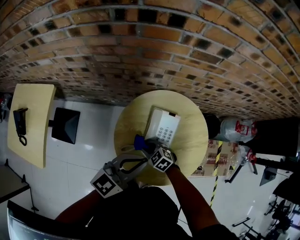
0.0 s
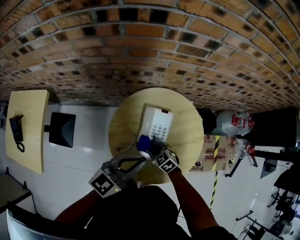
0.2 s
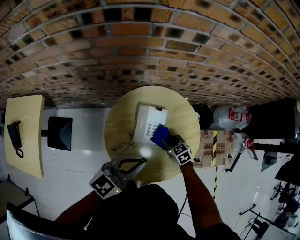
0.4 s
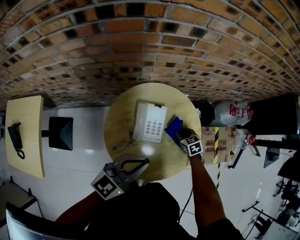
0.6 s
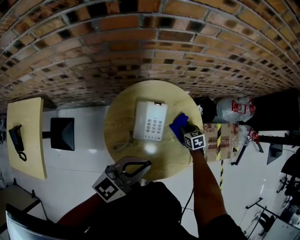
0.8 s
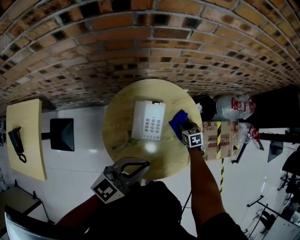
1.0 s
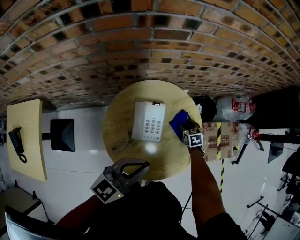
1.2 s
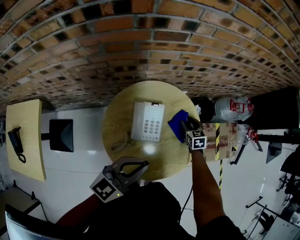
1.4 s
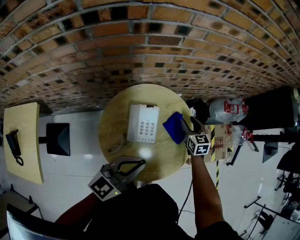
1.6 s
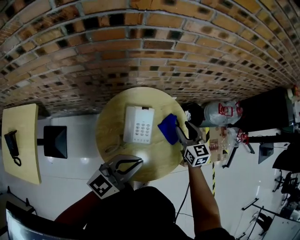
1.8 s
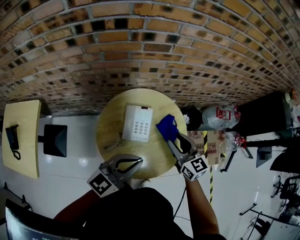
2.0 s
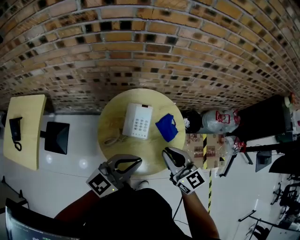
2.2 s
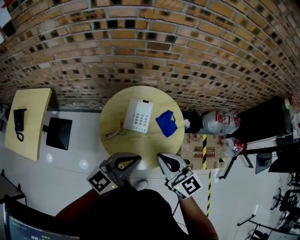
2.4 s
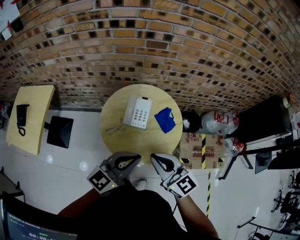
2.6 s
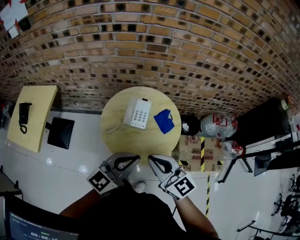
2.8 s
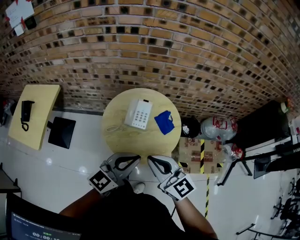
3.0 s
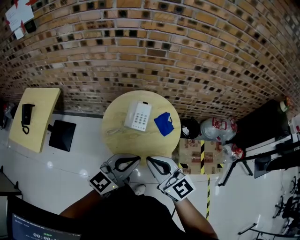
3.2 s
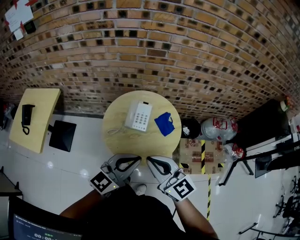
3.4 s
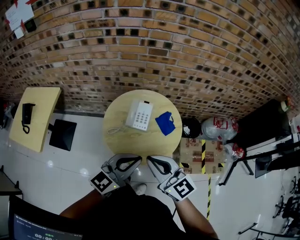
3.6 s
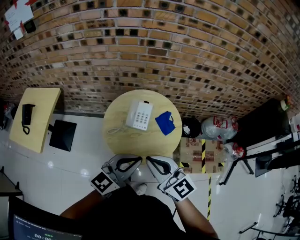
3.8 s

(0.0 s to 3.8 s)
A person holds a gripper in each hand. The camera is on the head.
0.0 s - 1.2 s: The right gripper shifts by some 35 cm, and changes its angle by approximately 50 degrees. The left gripper ends up roughly 10 cm from where it was.
1.2 s - 2.6 s: The right gripper shifts about 50 cm upward and backward, tilts its fingers some 50 degrees upward, and closes, while the left gripper goes about 20 cm backward, upward and to the right.
2.6 s - 3.8 s: The right gripper ends up about 5 cm from where it was.

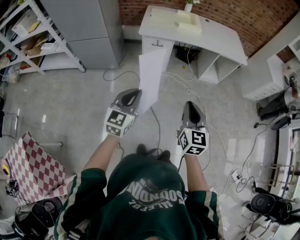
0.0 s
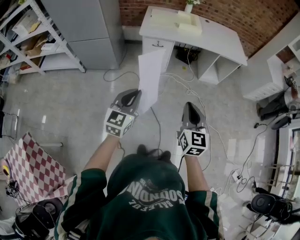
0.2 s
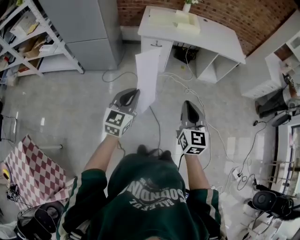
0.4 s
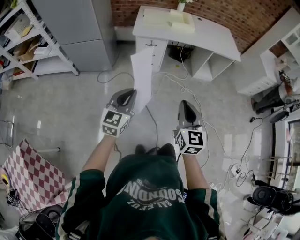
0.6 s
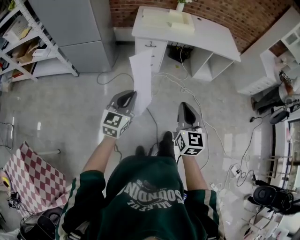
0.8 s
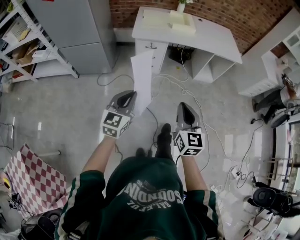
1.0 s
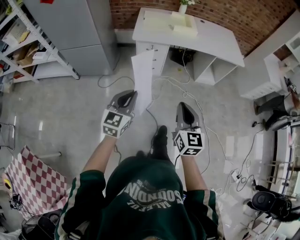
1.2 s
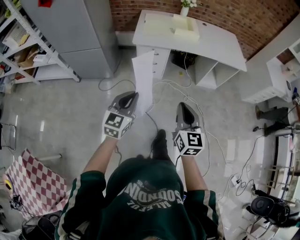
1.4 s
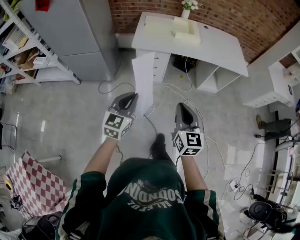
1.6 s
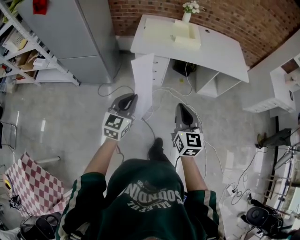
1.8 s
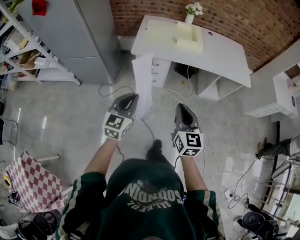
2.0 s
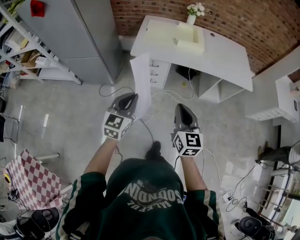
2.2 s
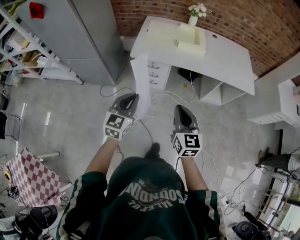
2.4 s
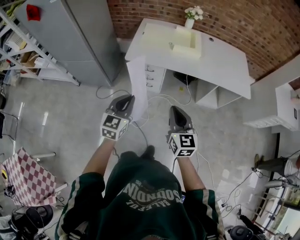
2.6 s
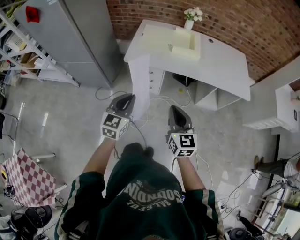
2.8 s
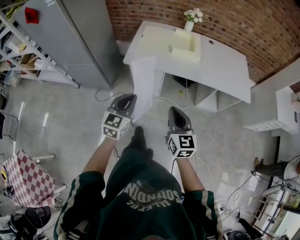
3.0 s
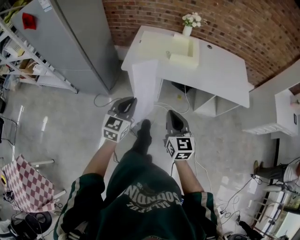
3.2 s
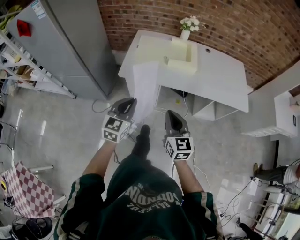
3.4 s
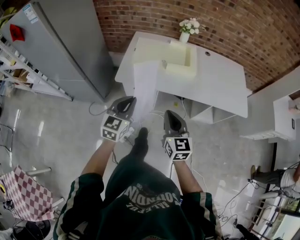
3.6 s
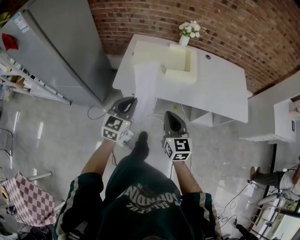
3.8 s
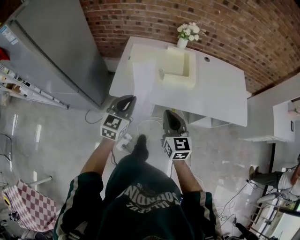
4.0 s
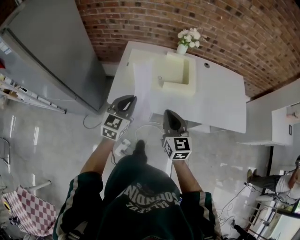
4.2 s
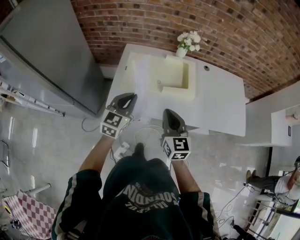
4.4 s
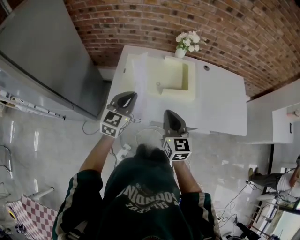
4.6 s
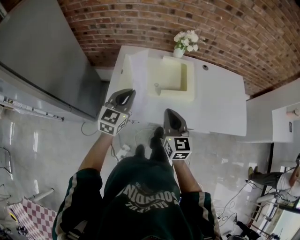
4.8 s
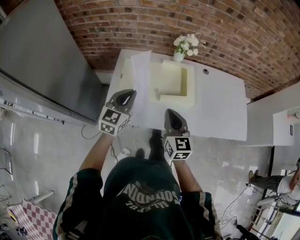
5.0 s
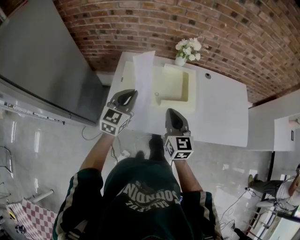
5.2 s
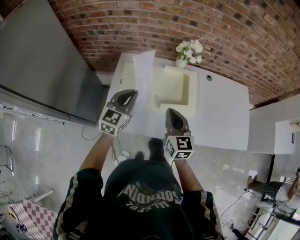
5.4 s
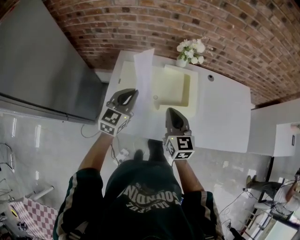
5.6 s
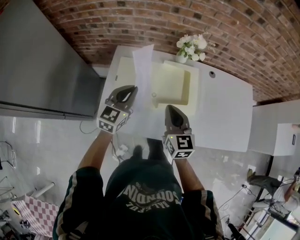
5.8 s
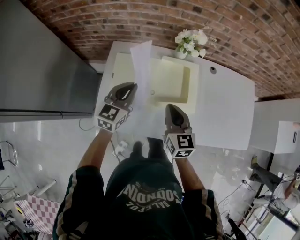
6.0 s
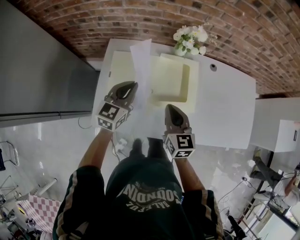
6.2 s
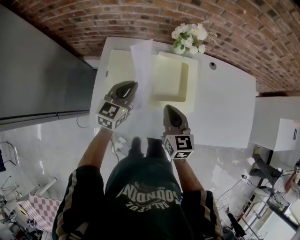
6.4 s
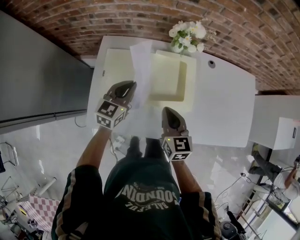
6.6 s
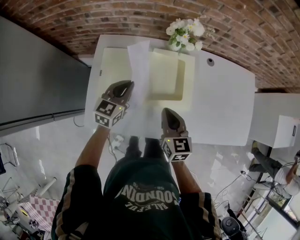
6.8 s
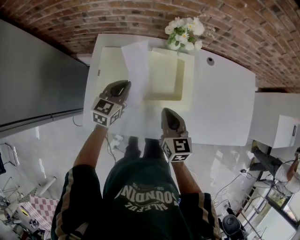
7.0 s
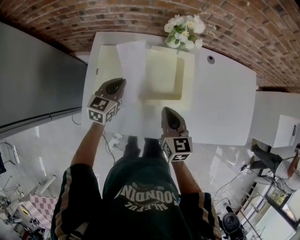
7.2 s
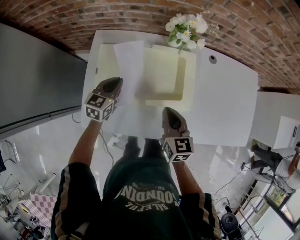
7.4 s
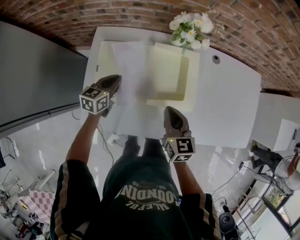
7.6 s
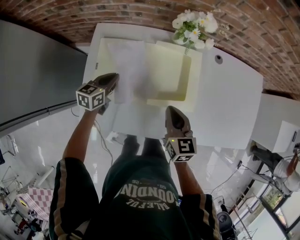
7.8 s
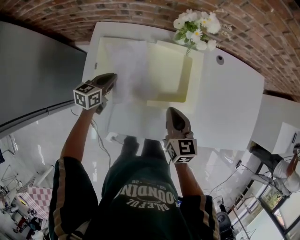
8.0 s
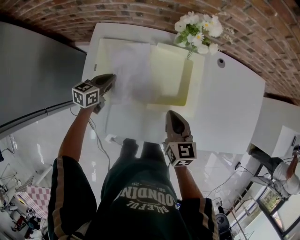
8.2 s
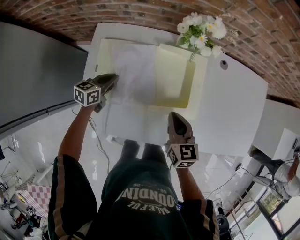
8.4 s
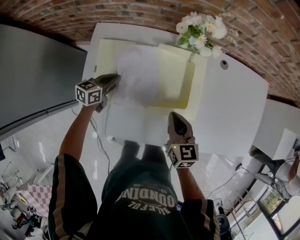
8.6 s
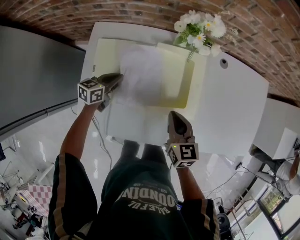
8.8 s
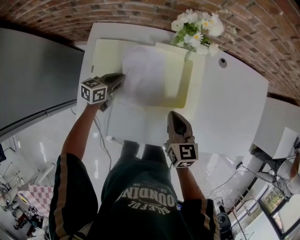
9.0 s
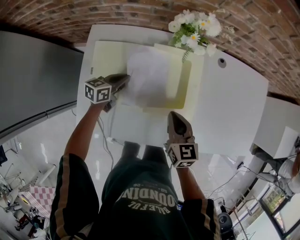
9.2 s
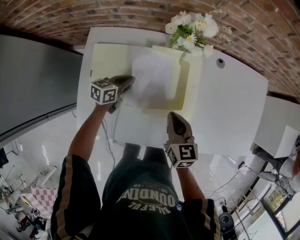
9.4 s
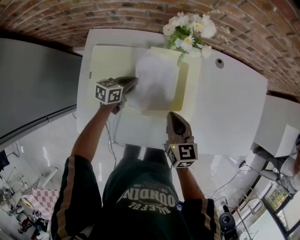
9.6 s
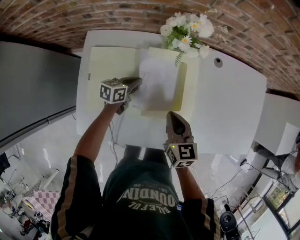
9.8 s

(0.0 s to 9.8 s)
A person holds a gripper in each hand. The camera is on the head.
0.0 s - 1.4 s: The two grippers go about 10 cm forward.
1.4 s - 2.8 s: The left gripper goes about 25 cm forward and to the right. Meanwhile the right gripper travels forward by approximately 20 cm.
2.8 s - 4.2 s: Both grippers move forward, about 35 cm.
4.2 s - 5.6 s: The grippers both shift forward by some 20 cm.
5.6 s - 7.0 s: The left gripper is displaced downward and forward by approximately 15 cm. Meanwhile the right gripper is displaced downward by approximately 10 cm.
7.0 s - 8.4 s: The left gripper goes roughly 15 cm downward and to the left, and turns by approximately 20 degrees, while the right gripper shifts some 5 cm downward.
8.4 s - 9.8 s: The left gripper moves to the right and forward, approximately 15 cm.

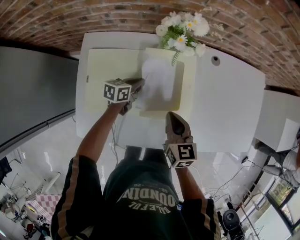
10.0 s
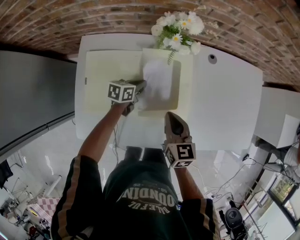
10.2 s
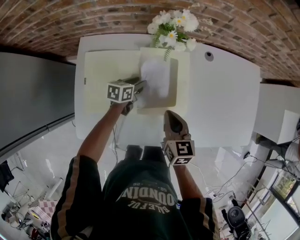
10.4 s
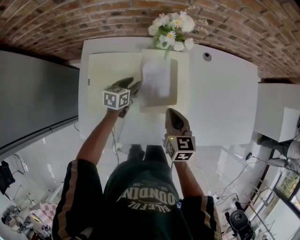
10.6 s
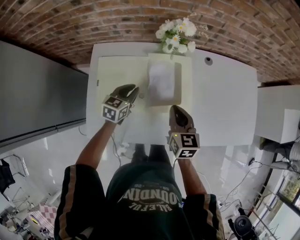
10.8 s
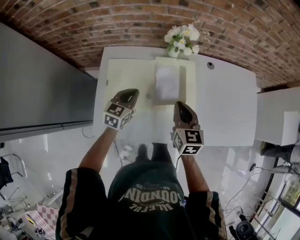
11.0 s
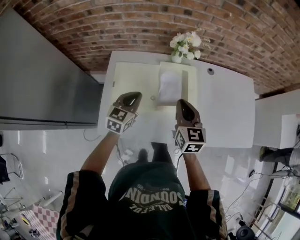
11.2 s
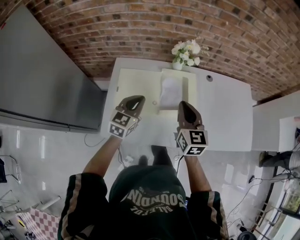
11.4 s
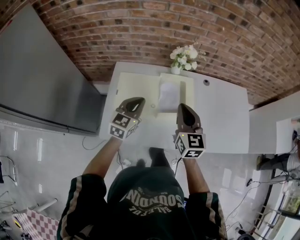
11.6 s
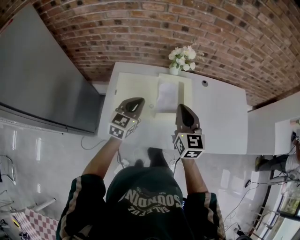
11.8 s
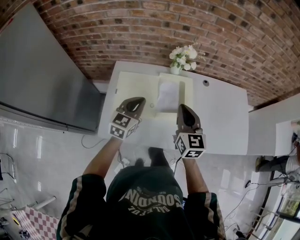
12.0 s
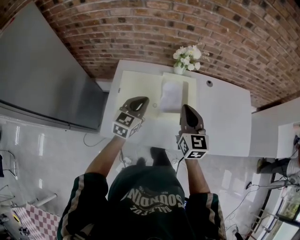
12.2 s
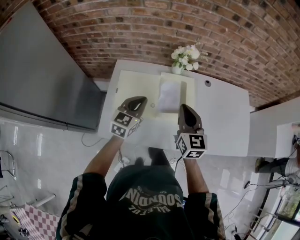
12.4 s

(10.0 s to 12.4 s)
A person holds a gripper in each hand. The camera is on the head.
10.0 s - 11.2 s: The right gripper heads upward, covering approximately 15 cm, while the left gripper goes approximately 25 cm upward and backward, turns by roughly 40 degrees, and opens and closes again.
11.2 s - 12.4 s: Both grippers move upward, roughly 5 cm.

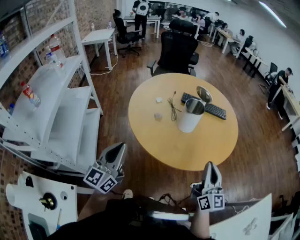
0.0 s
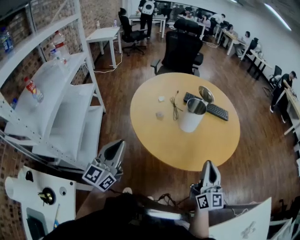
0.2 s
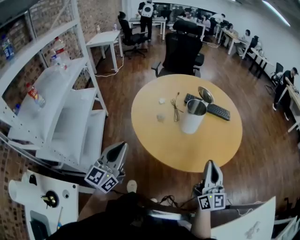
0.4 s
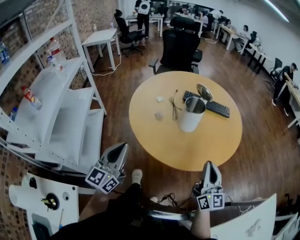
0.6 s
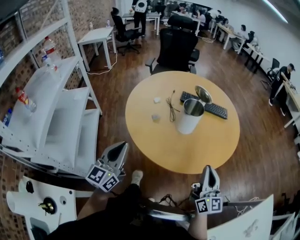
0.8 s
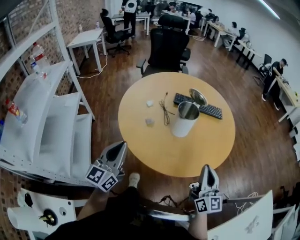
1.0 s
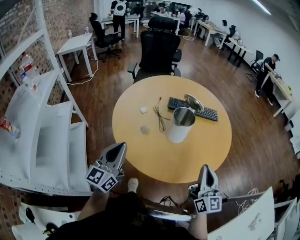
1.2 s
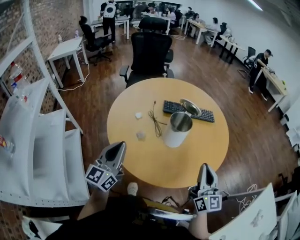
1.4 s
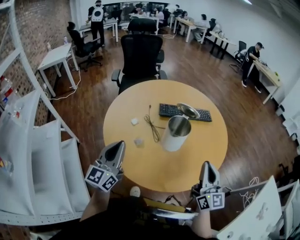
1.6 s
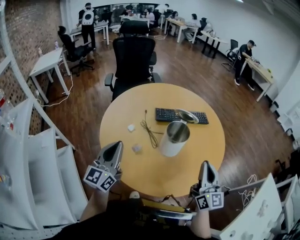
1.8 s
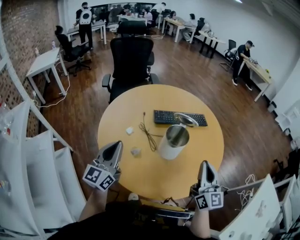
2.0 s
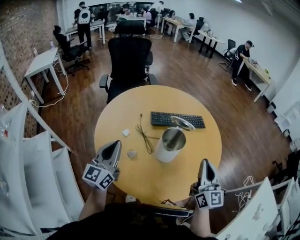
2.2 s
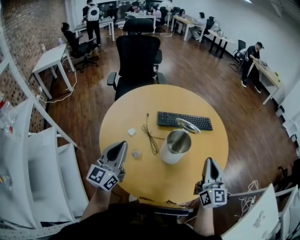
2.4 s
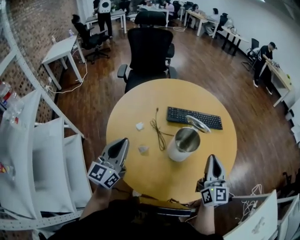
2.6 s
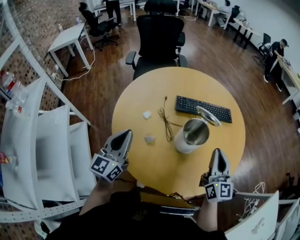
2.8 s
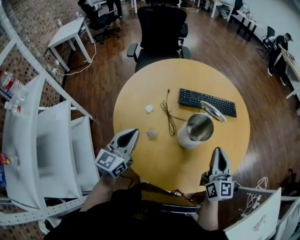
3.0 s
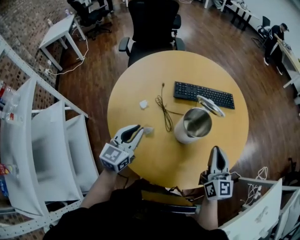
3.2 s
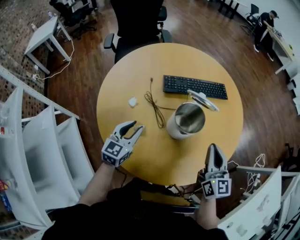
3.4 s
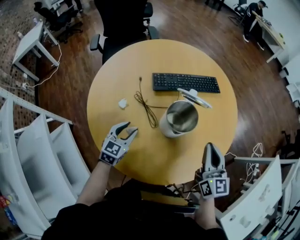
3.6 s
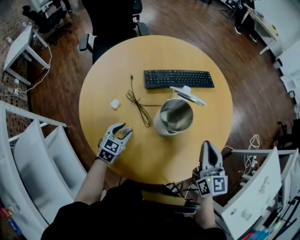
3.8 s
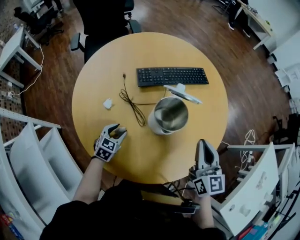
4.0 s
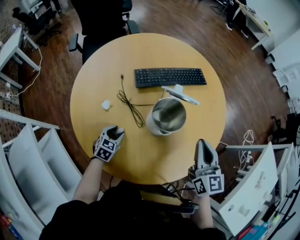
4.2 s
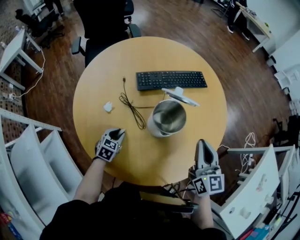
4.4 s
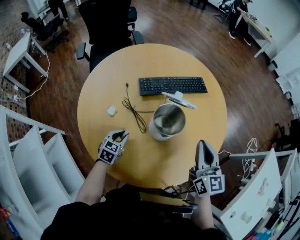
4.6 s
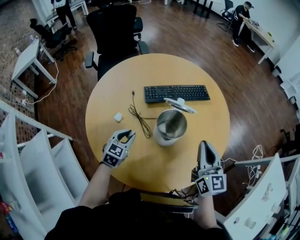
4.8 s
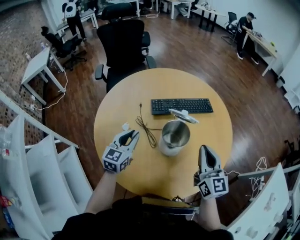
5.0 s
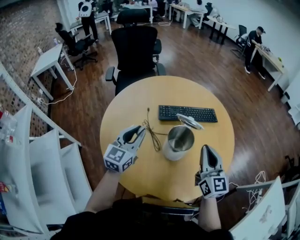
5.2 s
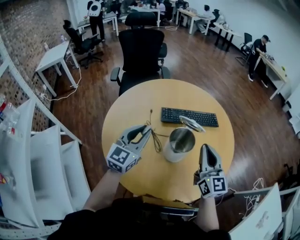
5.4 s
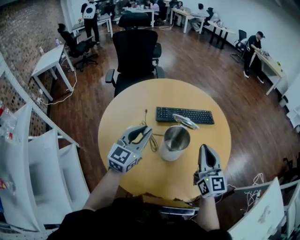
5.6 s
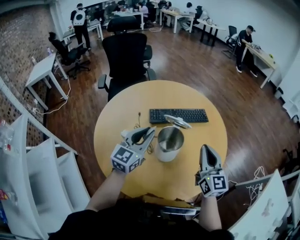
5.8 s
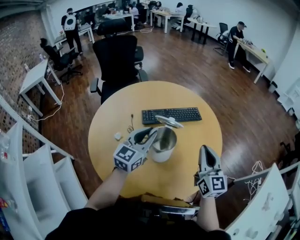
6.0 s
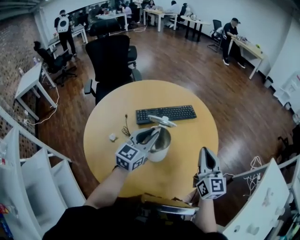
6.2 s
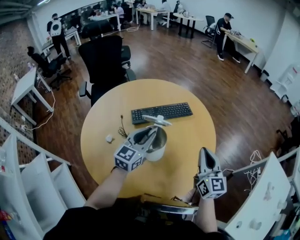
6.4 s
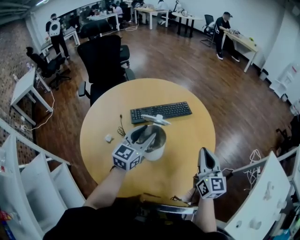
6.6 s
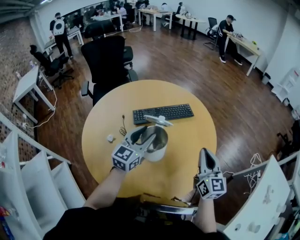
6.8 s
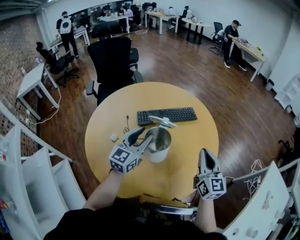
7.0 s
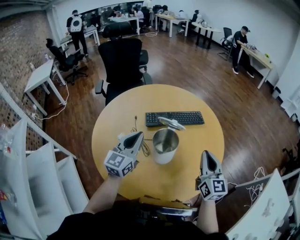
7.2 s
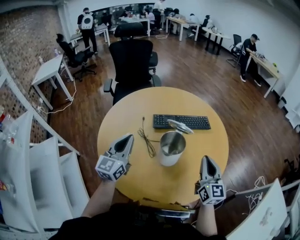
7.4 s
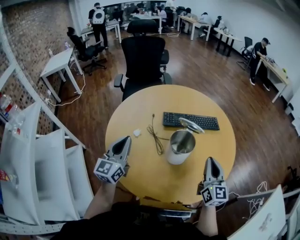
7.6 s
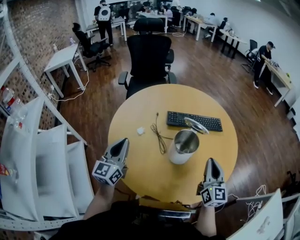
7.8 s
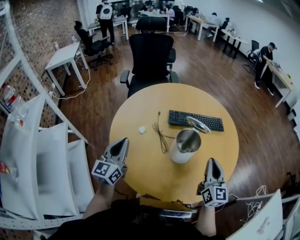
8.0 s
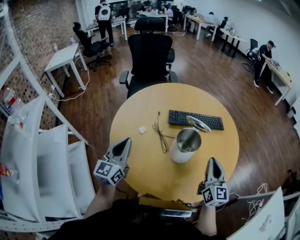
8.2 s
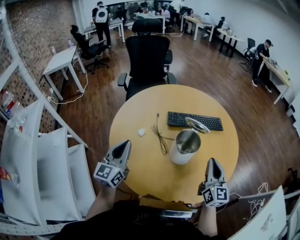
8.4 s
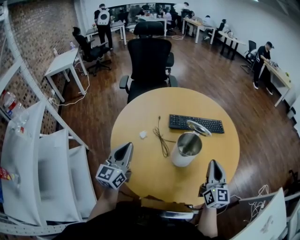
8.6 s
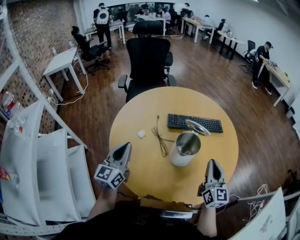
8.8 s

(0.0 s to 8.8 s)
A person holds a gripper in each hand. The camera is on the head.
0.0 s - 1.4 s: The left gripper heads forward, covering roughly 20 cm. The right gripper travels forward by about 10 cm.
1.4 s - 3.0 s: The left gripper travels forward and downward by roughly 15 cm, while the right gripper travels forward by approximately 15 cm.
3.0 s - 4.4 s: The left gripper heads downward, covering roughly 25 cm, tilts its fingers some 40 degrees downward, and opens its fingers.
4.4 s - 5.8 s: The right gripper heads upward, covering about 5 cm; the left gripper moves upward, roughly 30 cm, and angles its fingers upward, by roughly 40 degrees.
5.8 s - 7.4 s: The right gripper goes to the right and returns, approximately 10 cm each way, while the left gripper travels to the left by about 10 cm, and opens, then closes once more.
7.4 s - 8.8 s: The left gripper heads to the left and backward, covering some 10 cm.
